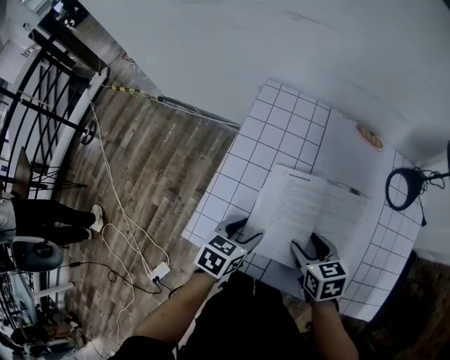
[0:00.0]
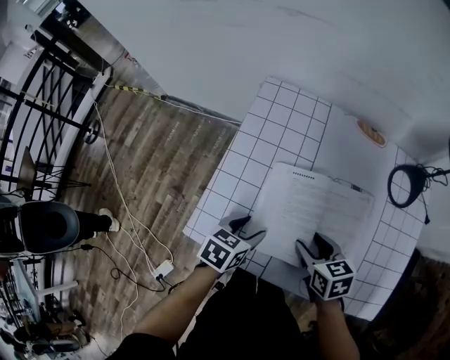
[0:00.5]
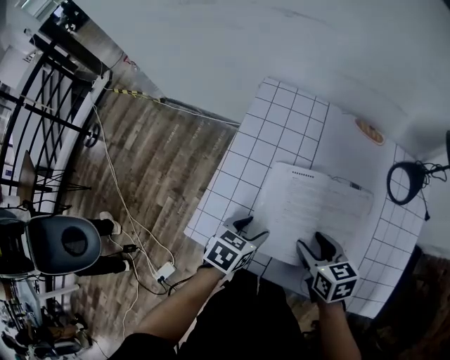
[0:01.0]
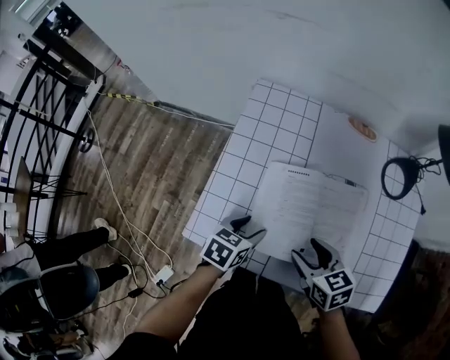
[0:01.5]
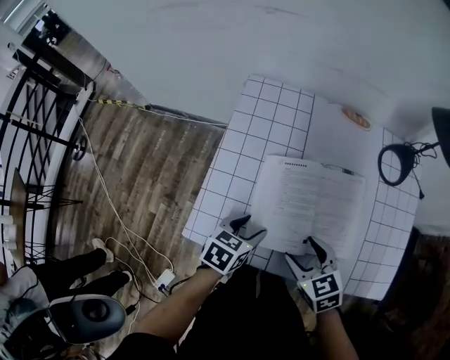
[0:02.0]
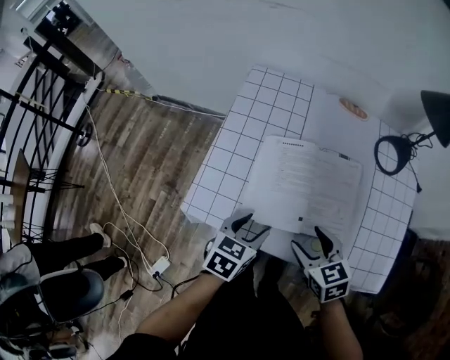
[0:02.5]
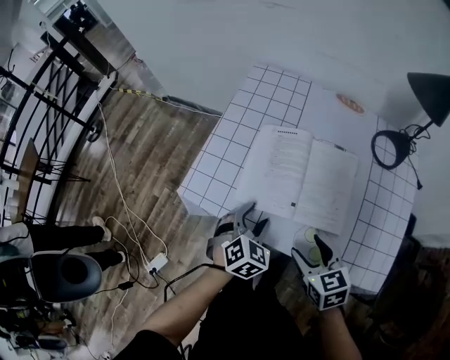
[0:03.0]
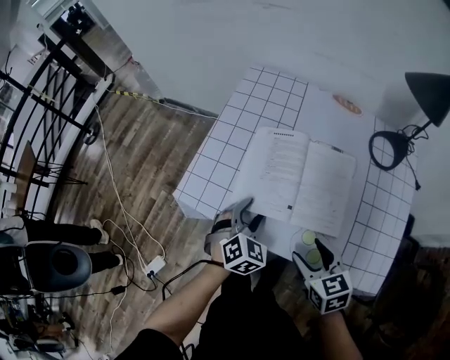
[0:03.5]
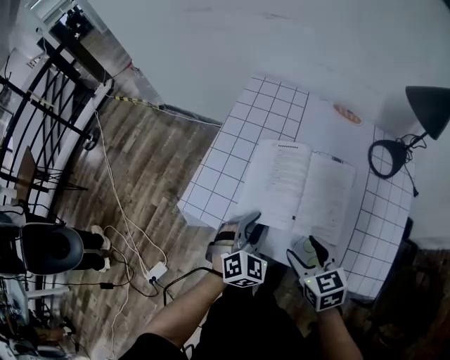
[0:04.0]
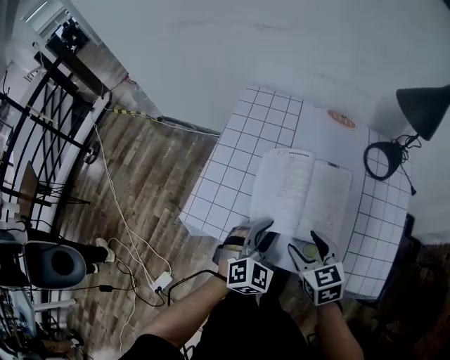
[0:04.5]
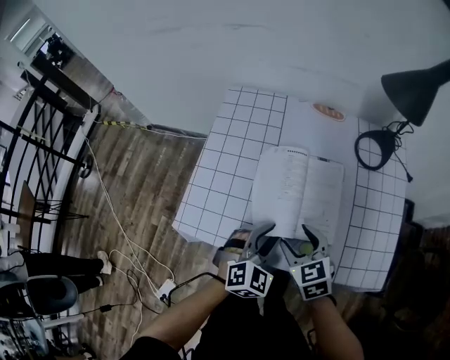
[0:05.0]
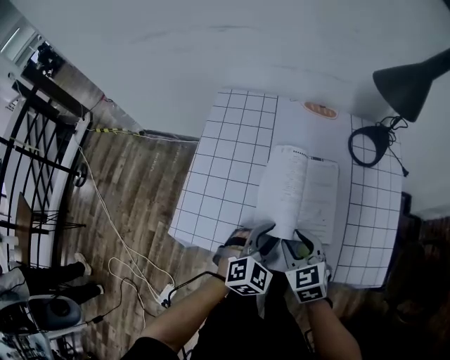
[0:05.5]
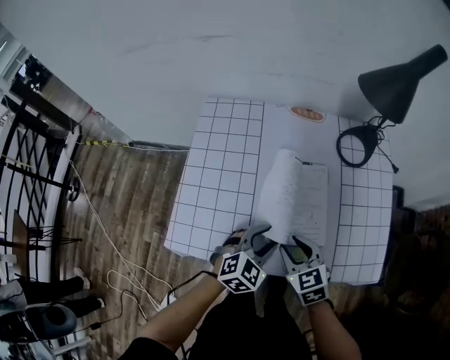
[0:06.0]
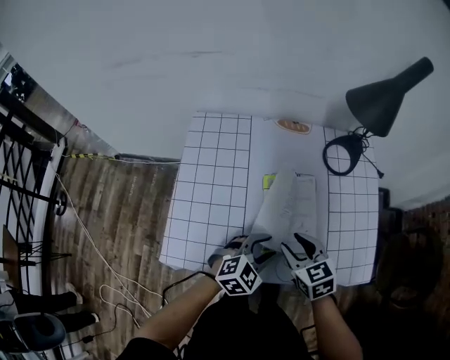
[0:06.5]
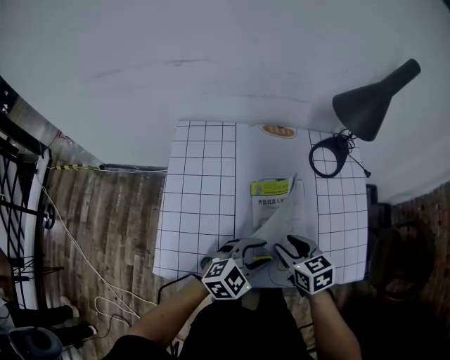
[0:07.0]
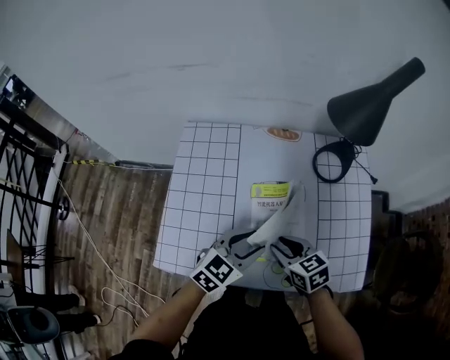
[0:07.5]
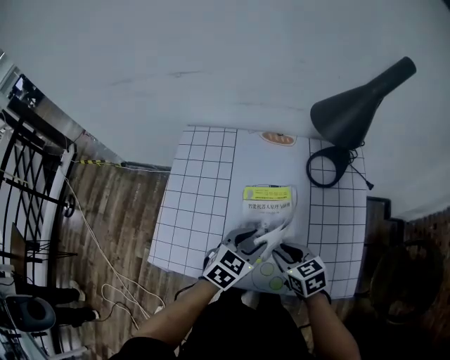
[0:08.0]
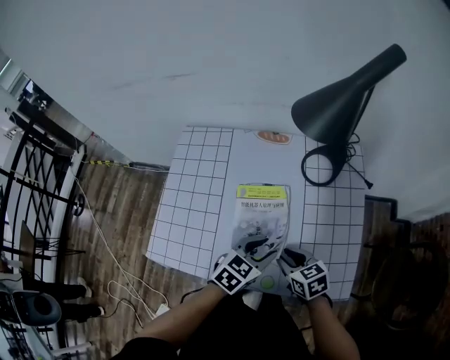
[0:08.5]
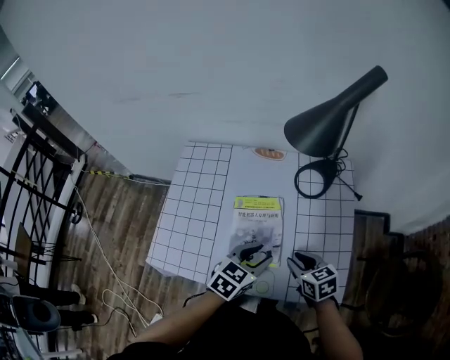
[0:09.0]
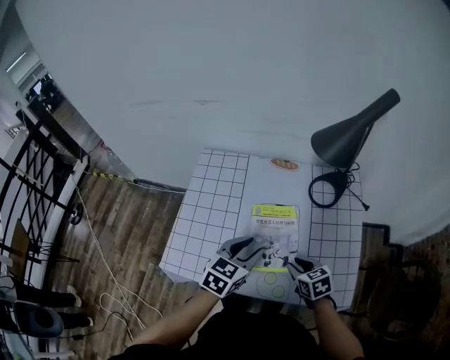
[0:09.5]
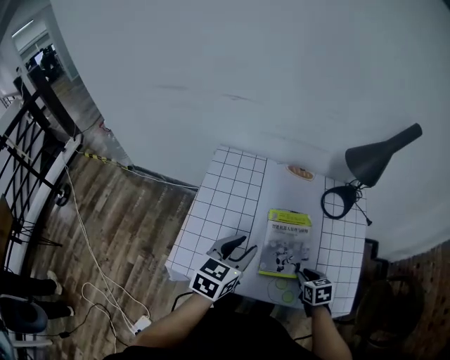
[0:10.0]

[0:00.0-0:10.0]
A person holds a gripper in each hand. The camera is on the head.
0.0 to 2.0 s: The right gripper shifts some 5 cm backward.
2.0 to 4.0 s: The left gripper is displaced backward and to the right by approximately 10 cm, turns by some 50 degrees, and closes. The right gripper heads backward, covering approximately 5 cm.
4.0 to 6.0 s: The left gripper shifts by roughly 10 cm, and swivels about 30 degrees. Meanwhile the right gripper closes up.
6.0 to 8.0 s: The left gripper heads forward and upward, covering roughly 10 cm, while the right gripper heads to the right and forward, covering some 10 cm.
8.0 to 10.0 s: The right gripper changes its angle by some 20 degrees. The left gripper goes approximately 20 cm to the left and upward, and turns by approximately 20 degrees.

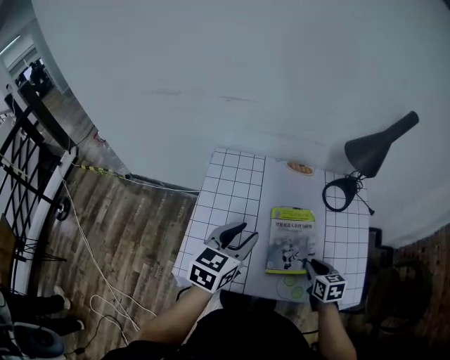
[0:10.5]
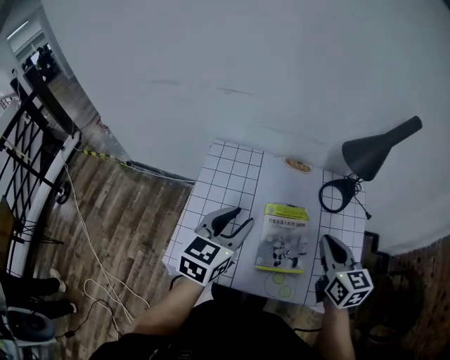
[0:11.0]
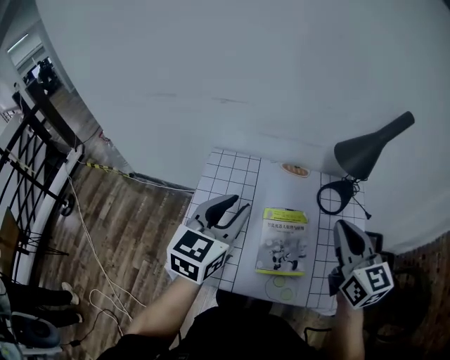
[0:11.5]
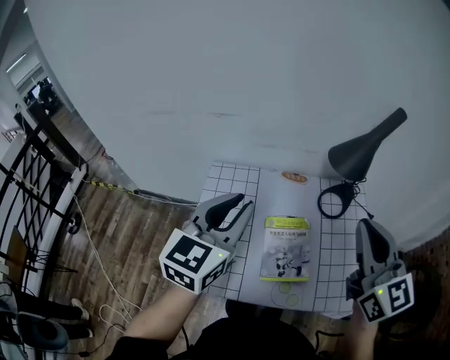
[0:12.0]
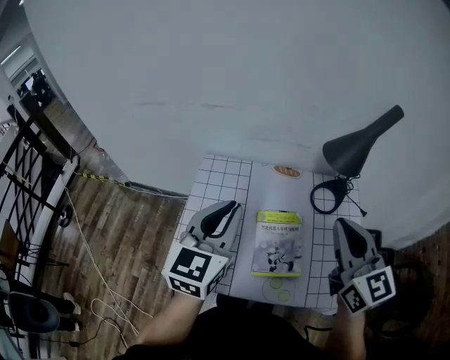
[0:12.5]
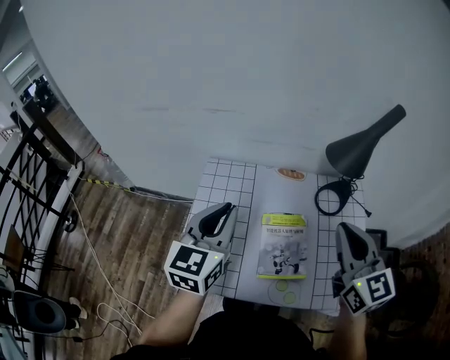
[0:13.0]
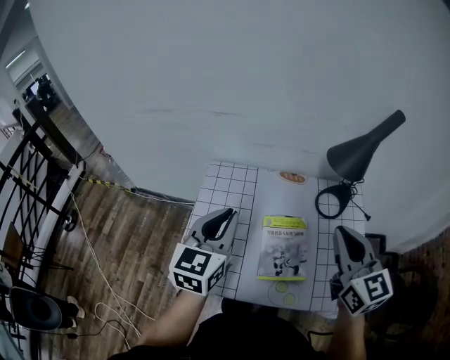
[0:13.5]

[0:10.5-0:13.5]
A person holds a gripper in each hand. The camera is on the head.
10.5 to 12.0 s: The right gripper travels upward by some 40 cm, and angles its fingers upward, by approximately 50 degrees; the left gripper heads upward, covering roughly 20 cm.
12.0 to 13.5 s: The grippers both shift downward by approximately 5 cm.

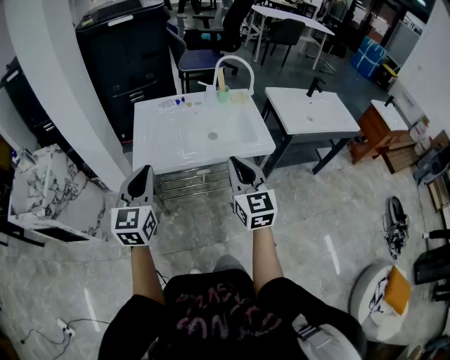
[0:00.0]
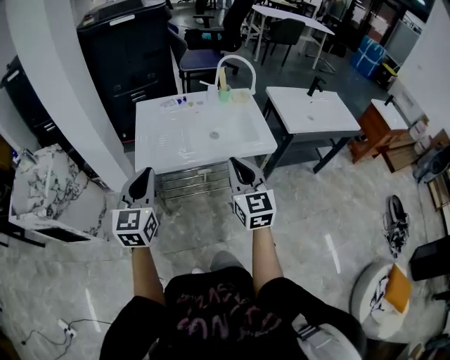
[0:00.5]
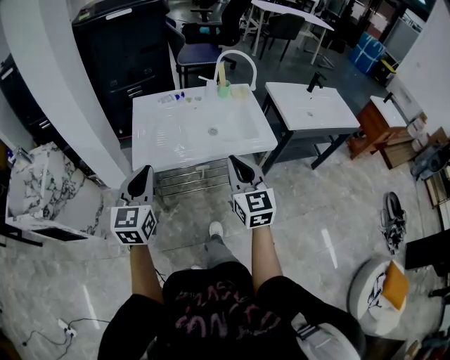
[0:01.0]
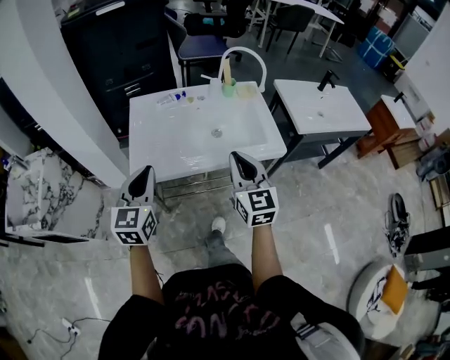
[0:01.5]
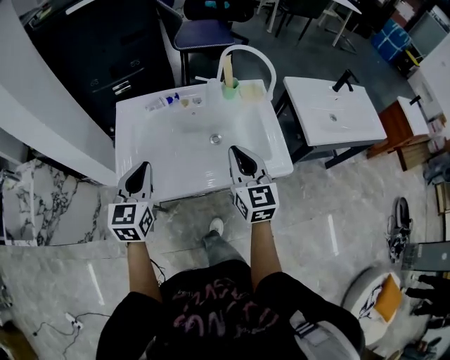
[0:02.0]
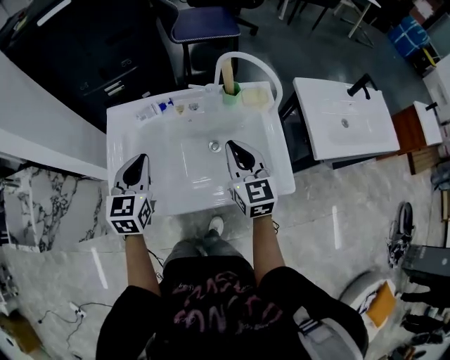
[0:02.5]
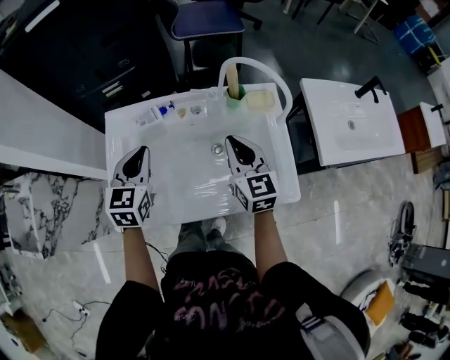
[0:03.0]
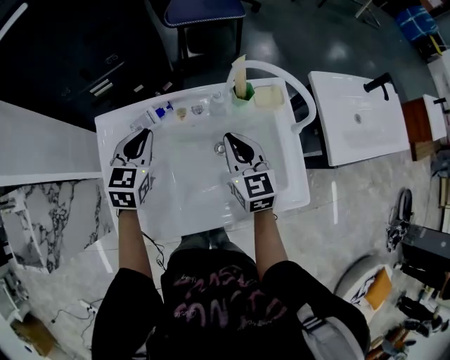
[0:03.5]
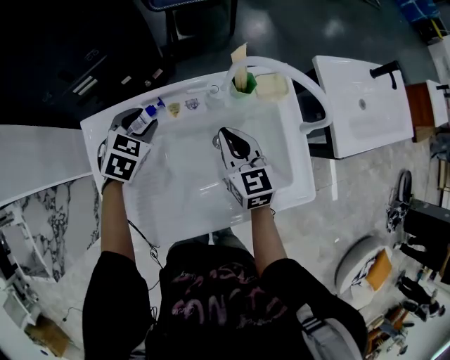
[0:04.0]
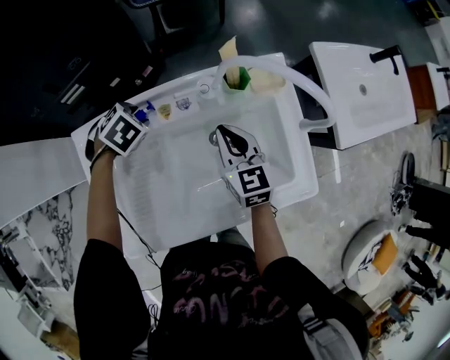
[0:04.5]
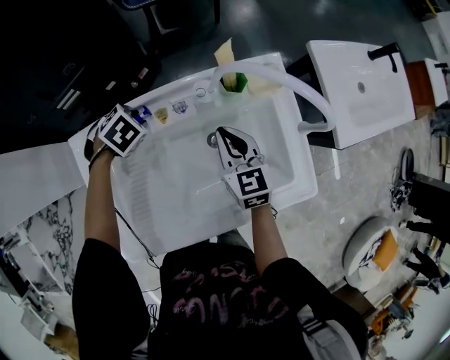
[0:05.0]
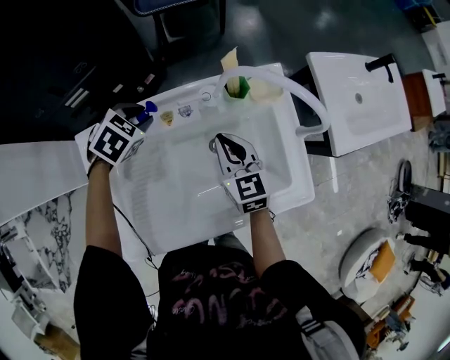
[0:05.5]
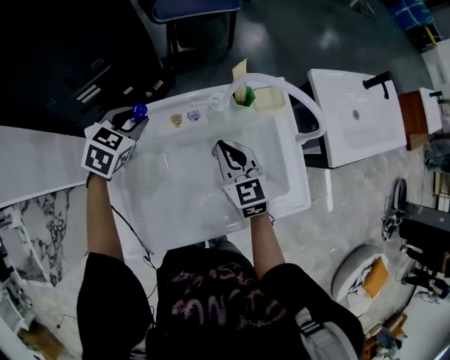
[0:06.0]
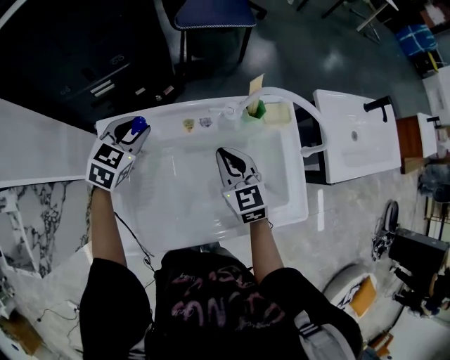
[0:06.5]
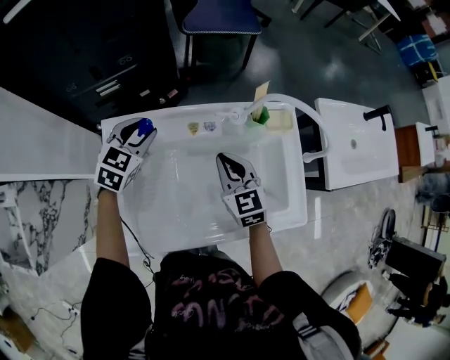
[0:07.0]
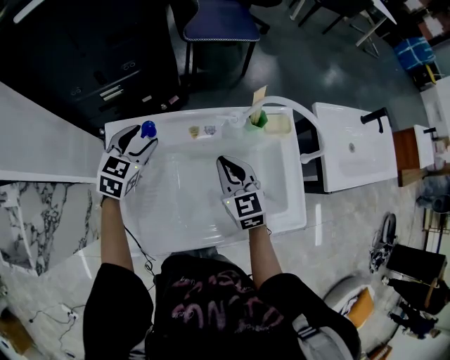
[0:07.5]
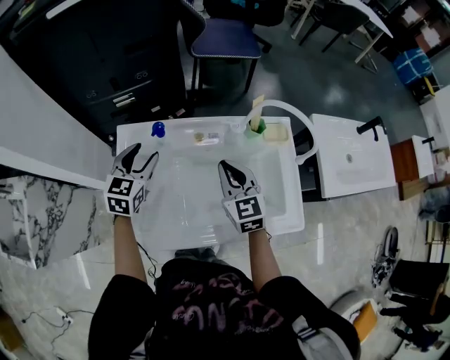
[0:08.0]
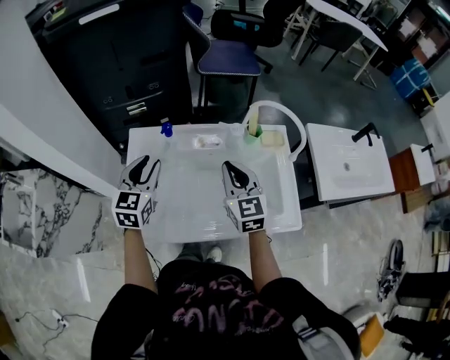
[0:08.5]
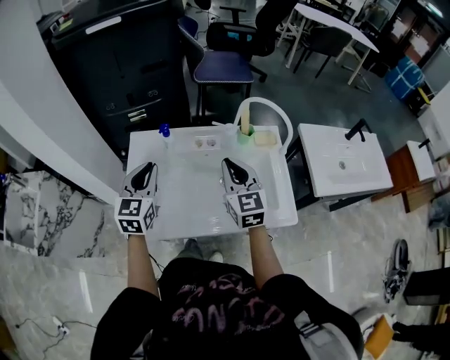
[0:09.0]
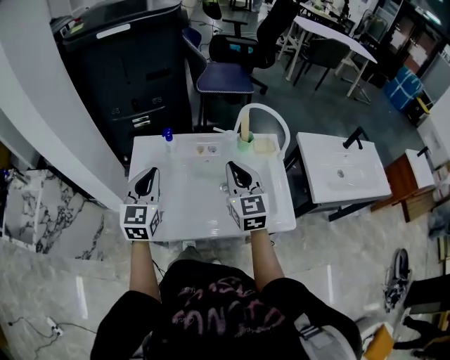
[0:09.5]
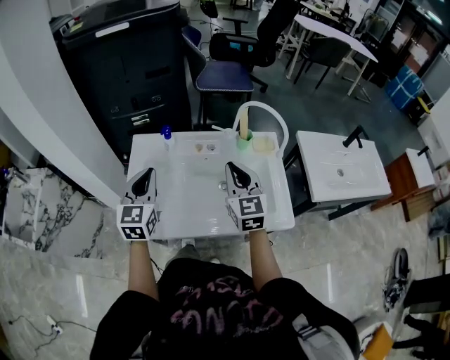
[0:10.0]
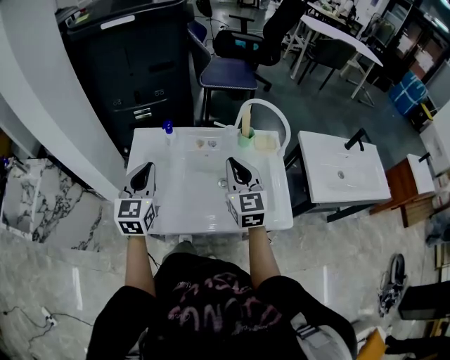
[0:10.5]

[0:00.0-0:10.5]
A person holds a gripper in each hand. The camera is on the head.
0.0 to 2.0 s: The left gripper moves forward and downward, approximately 25 cm. Meanwhile the right gripper heads forward, covering some 25 cm.
2.0 to 4.0 s: The grippers both shift forward and downward by some 35 cm. The left gripper tilts its fingers some 40 degrees downward, and opens.
4.0 to 6.5 s: The left gripper moves some 10 cm. The right gripper moves about 5 cm.
6.5 to 8.5 s: The left gripper goes about 20 cm backward and upward, turns by approximately 30 degrees, and opens and closes again. Meanwhile the right gripper travels upward and backward by about 15 cm.
8.5 to 10.5 s: The left gripper goes approximately 10 cm backward, and closes its fingers. Meanwhile the right gripper shifts by roughly 5 cm.

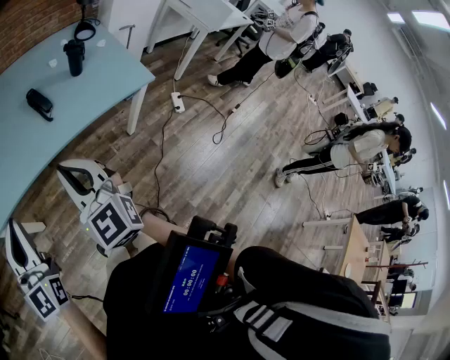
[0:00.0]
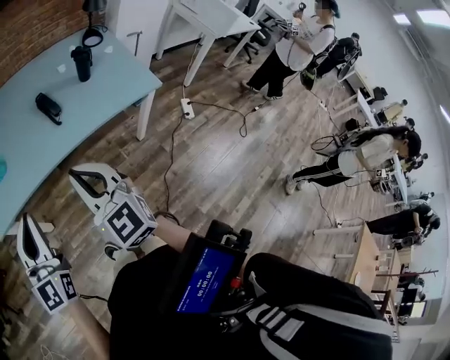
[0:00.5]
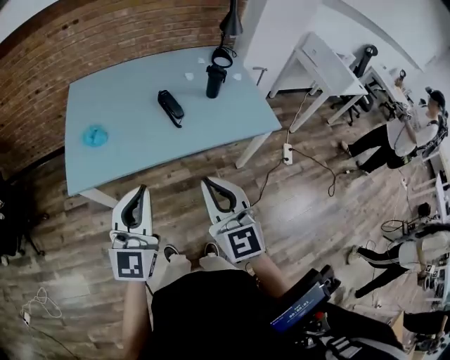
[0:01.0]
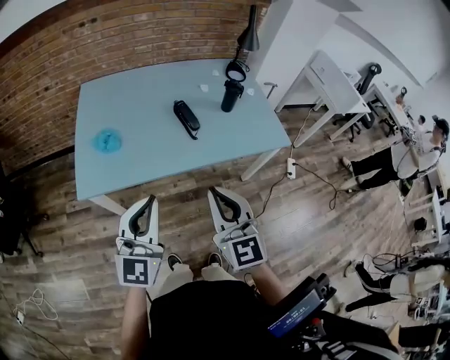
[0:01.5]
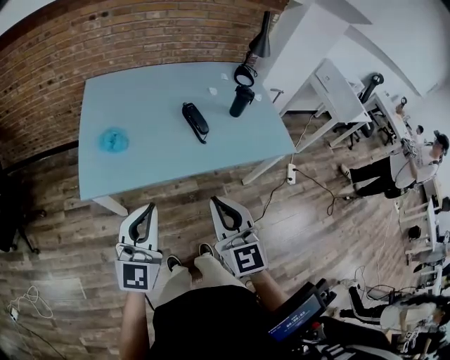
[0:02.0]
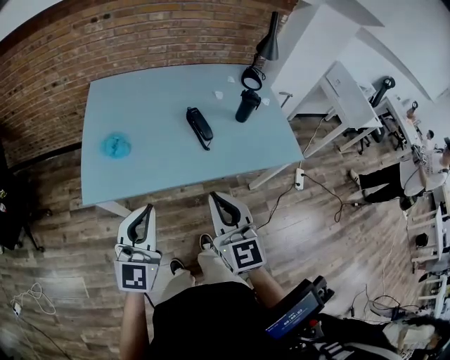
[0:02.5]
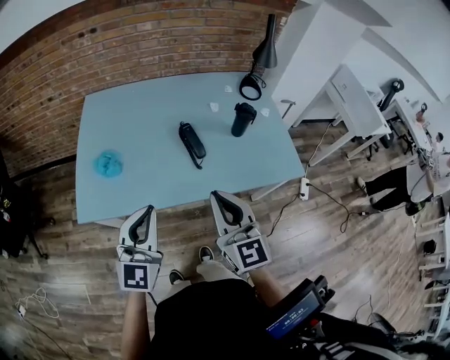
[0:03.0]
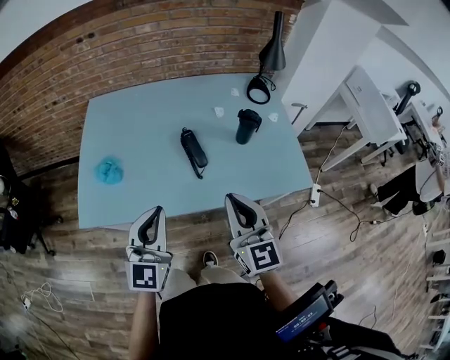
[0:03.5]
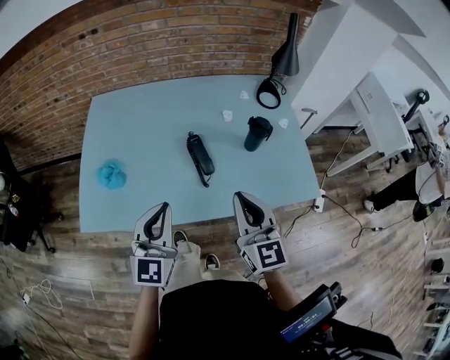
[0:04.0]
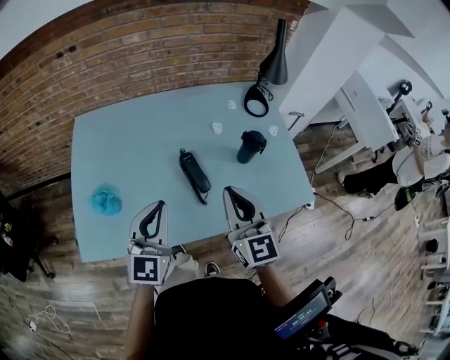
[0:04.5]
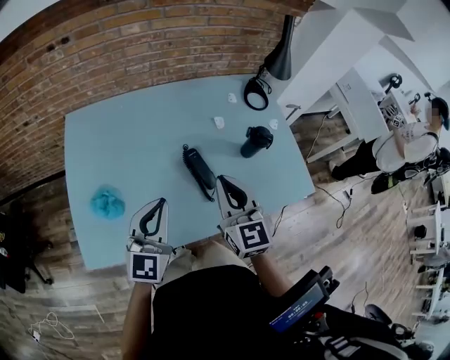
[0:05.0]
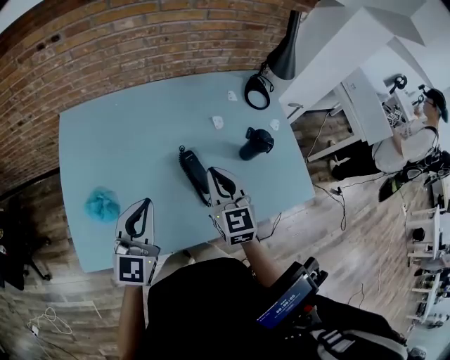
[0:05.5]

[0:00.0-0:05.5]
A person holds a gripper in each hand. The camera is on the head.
0.0 to 2.0 s: The grippers both shift to the left by some 10 cm.
2.0 to 3.5 s: The grippers both shift forward and to the right by some 25 cm.
3.5 to 5.5 s: The left gripper moves forward and to the left, approximately 25 cm. Meanwhile the right gripper travels forward by some 25 cm.
